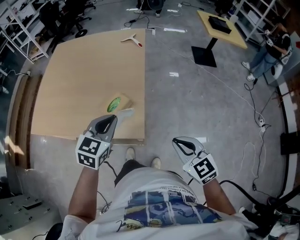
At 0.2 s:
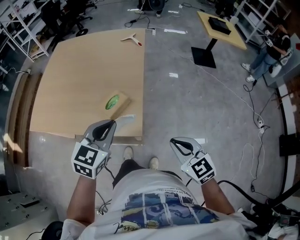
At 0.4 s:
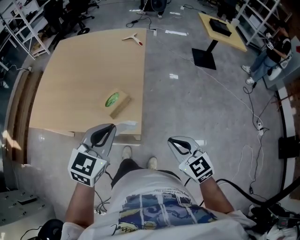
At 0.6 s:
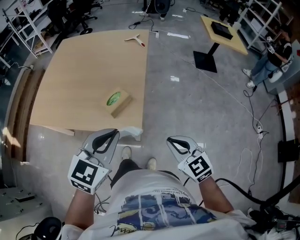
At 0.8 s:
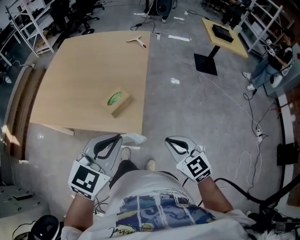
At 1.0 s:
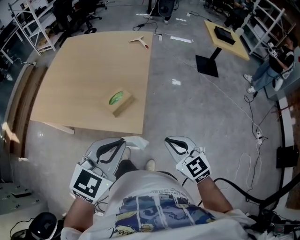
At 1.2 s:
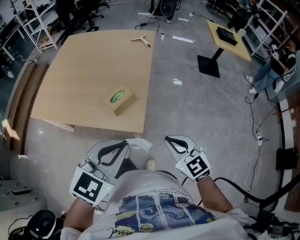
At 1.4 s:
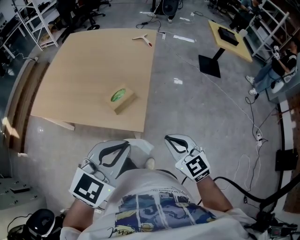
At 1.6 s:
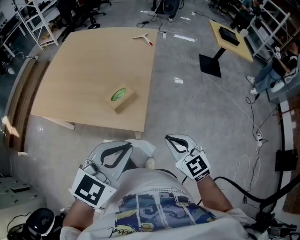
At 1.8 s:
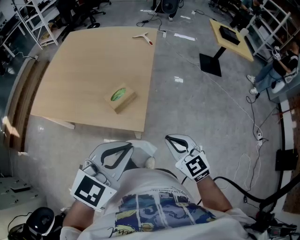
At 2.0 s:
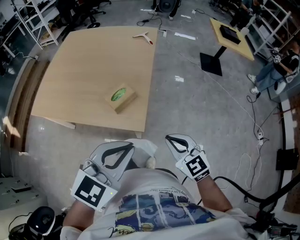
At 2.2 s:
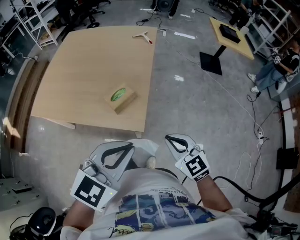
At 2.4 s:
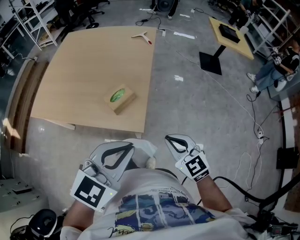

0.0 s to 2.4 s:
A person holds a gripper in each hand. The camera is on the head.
0.0 to 1.2 s: The left gripper goes some 20 cm backward and upward.
1.2 to 2.4 s: The grippers make only small movements.

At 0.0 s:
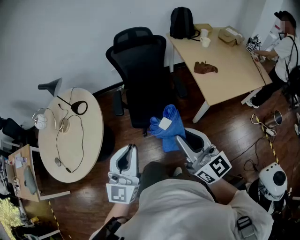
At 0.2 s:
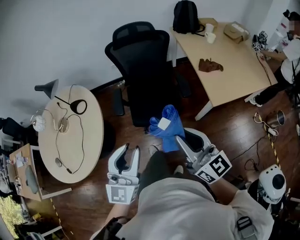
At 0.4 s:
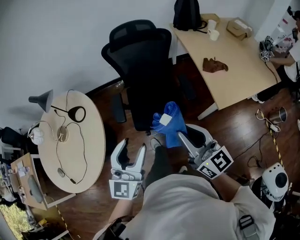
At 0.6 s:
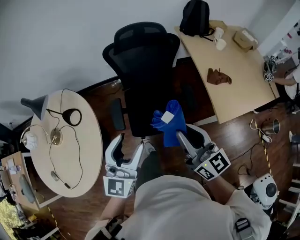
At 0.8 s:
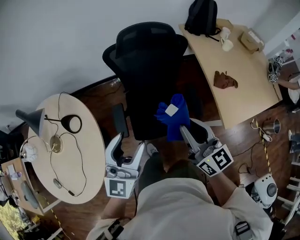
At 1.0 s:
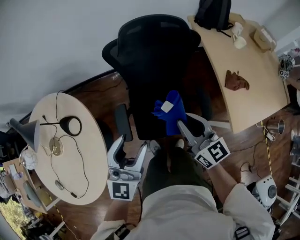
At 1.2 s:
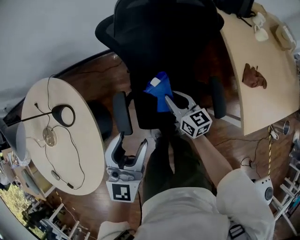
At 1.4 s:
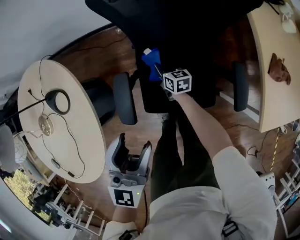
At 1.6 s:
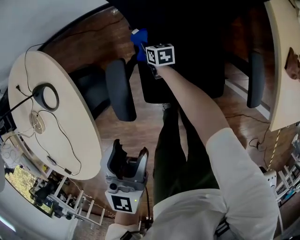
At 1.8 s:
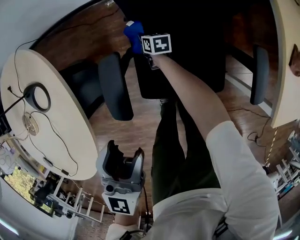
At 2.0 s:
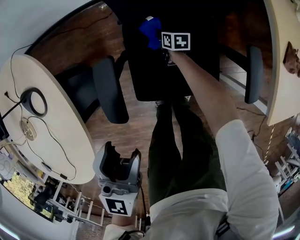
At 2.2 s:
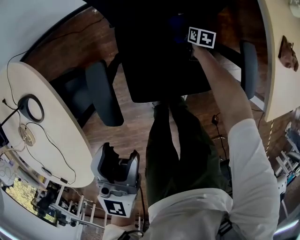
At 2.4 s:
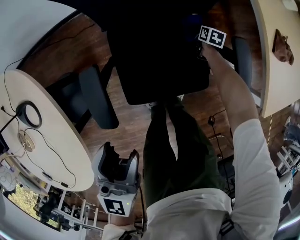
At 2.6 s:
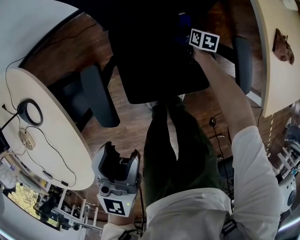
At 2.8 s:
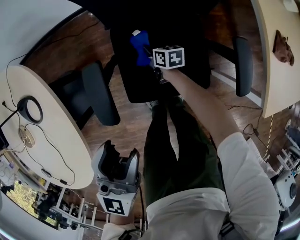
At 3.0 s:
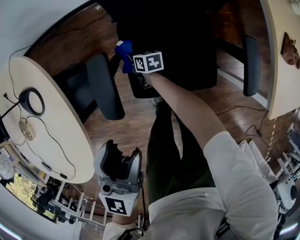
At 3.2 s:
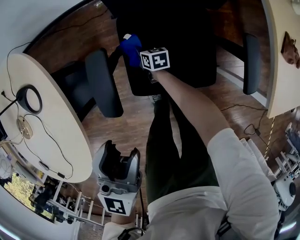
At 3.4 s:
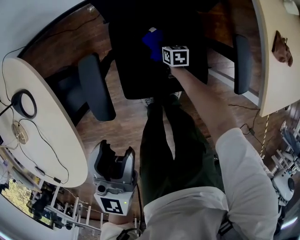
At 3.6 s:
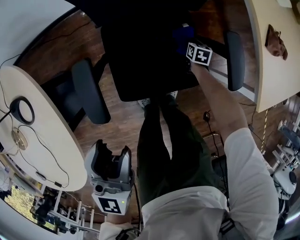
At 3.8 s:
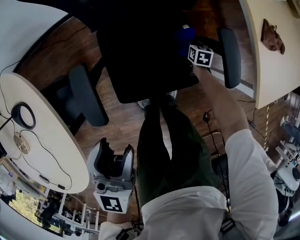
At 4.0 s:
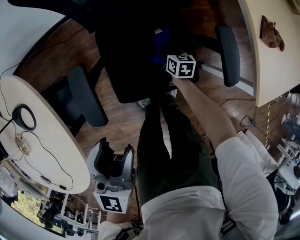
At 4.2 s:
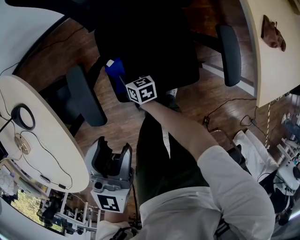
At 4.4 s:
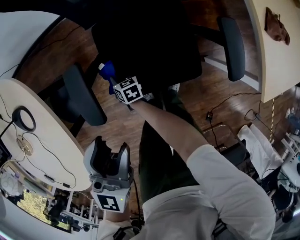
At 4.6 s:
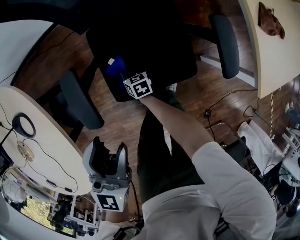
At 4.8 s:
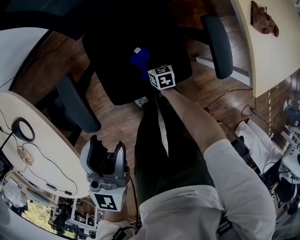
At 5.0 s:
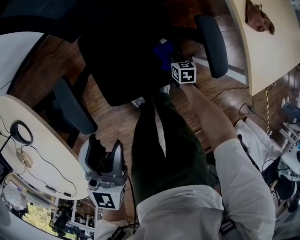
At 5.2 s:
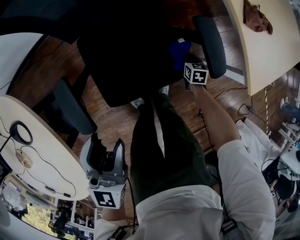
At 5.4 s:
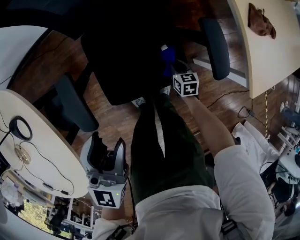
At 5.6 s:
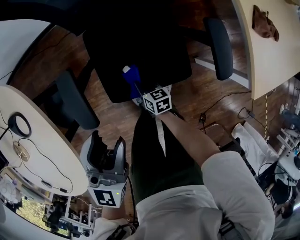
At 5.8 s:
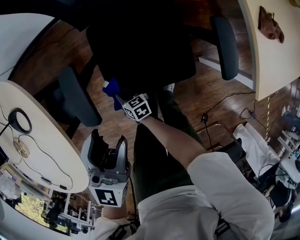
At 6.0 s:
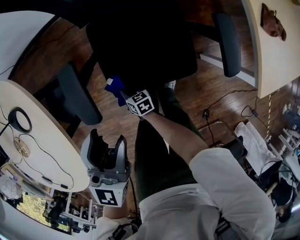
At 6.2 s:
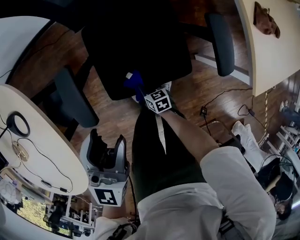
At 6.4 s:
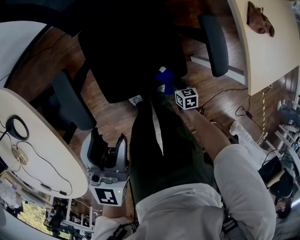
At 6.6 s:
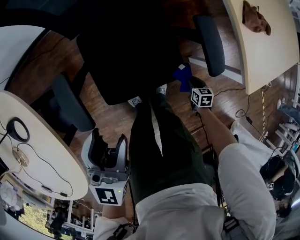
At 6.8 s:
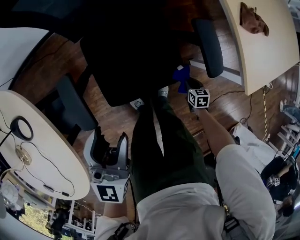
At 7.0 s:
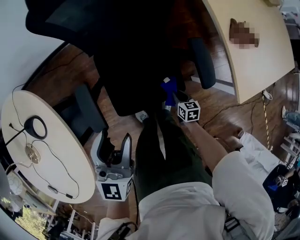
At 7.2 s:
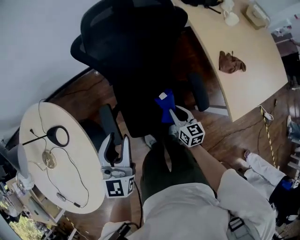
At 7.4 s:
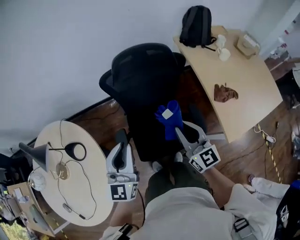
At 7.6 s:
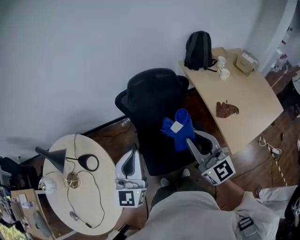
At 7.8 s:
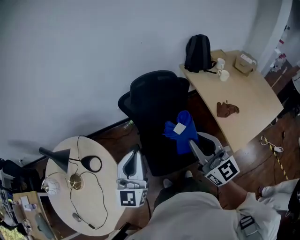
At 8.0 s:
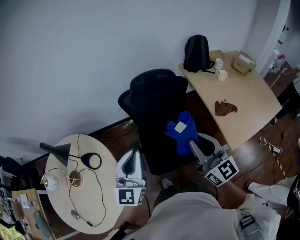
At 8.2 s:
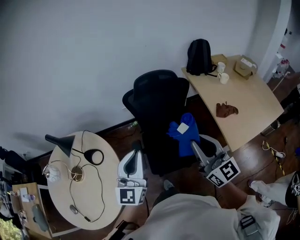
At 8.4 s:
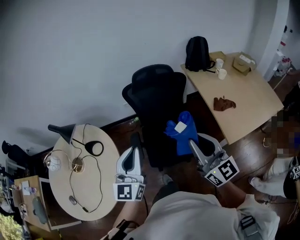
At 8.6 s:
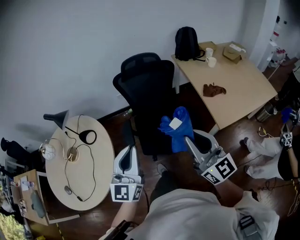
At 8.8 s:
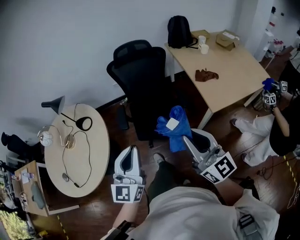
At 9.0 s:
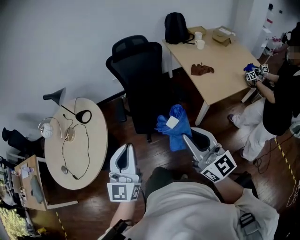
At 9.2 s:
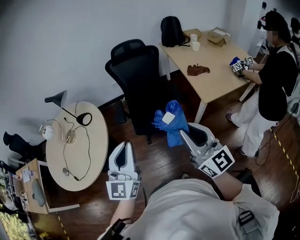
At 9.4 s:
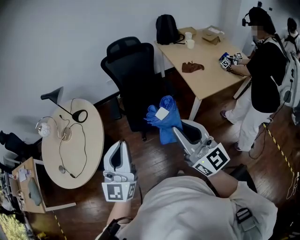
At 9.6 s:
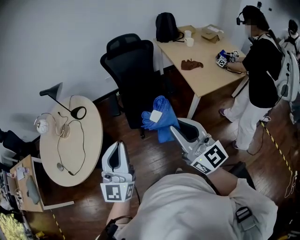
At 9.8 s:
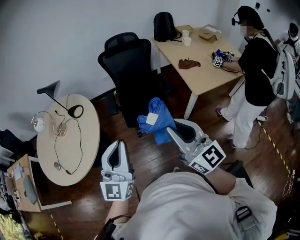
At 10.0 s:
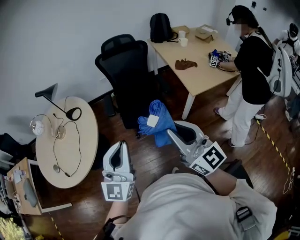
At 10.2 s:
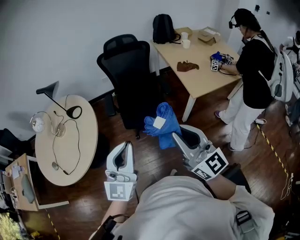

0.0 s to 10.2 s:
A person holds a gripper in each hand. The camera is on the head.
0.0 to 1.4 s: The pair of grippers is taken forward, about 70 cm. The right gripper heads downward, covering about 70 cm, and angles its fingers downward, by about 50 degrees; the left gripper moves downward, some 25 cm, rotates approximately 20 degrees, and opens up.
1.4 to 3.0 s: The right gripper goes left and right, roughly 35 cm each way, reversing 2 times. Meanwhile the left gripper moves downward, some 10 cm.
5.8 to 7.2 s: The right gripper travels upward and to the right by about 50 cm, and swivels roughly 40 degrees, while the left gripper is displaced upward by roughly 20 cm.
7.2 to 8.8 s: The pair of grippers is taken backward, some 60 cm. The left gripper closes; the right gripper heads upward, covering approximately 50 cm, and tips its fingers upward by some 50 degrees.
8.8 to 10.2 s: Both grippers travel together backward, roughly 20 cm. The left gripper turns by some 20 degrees.

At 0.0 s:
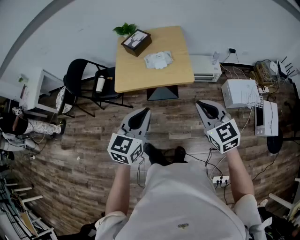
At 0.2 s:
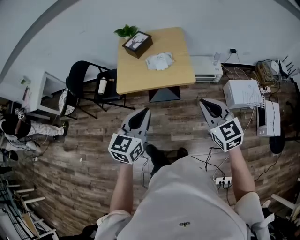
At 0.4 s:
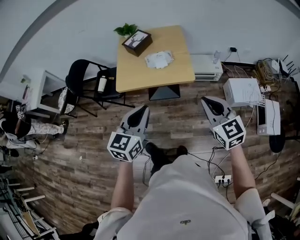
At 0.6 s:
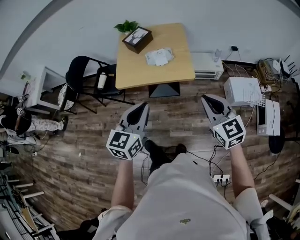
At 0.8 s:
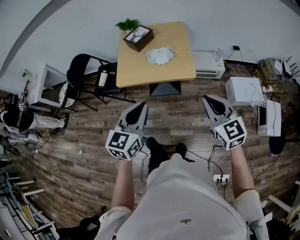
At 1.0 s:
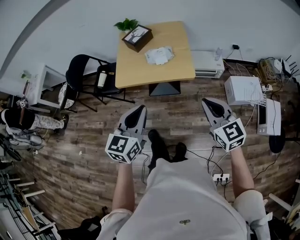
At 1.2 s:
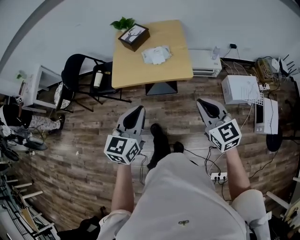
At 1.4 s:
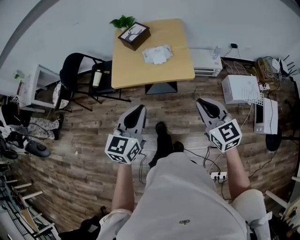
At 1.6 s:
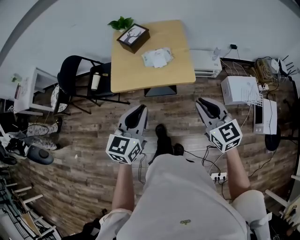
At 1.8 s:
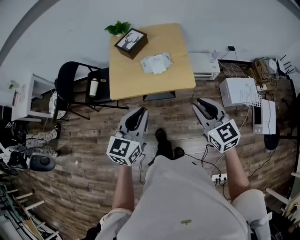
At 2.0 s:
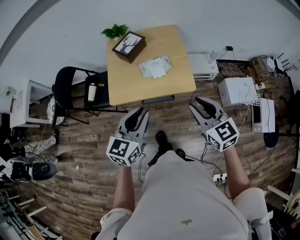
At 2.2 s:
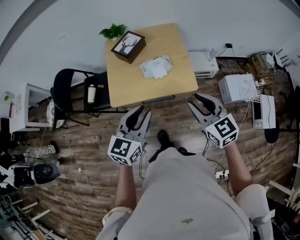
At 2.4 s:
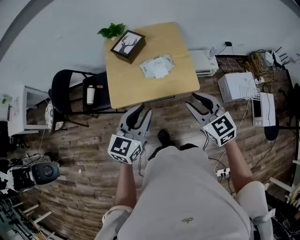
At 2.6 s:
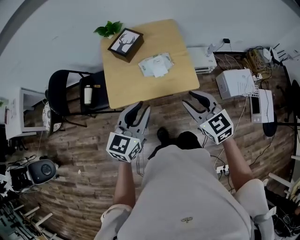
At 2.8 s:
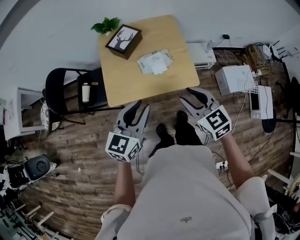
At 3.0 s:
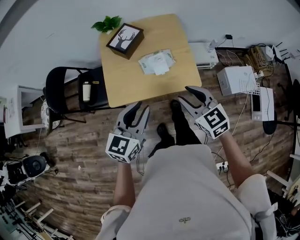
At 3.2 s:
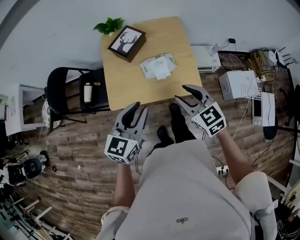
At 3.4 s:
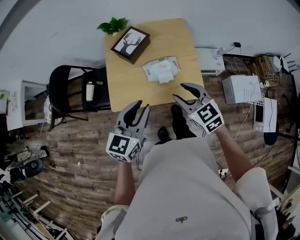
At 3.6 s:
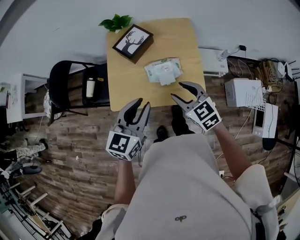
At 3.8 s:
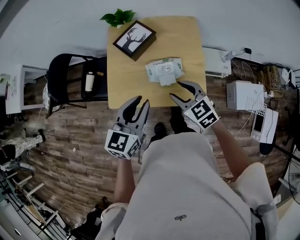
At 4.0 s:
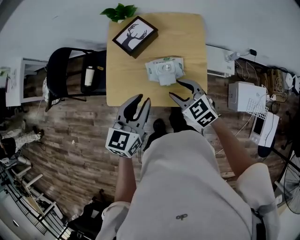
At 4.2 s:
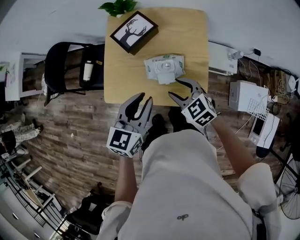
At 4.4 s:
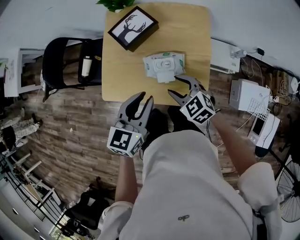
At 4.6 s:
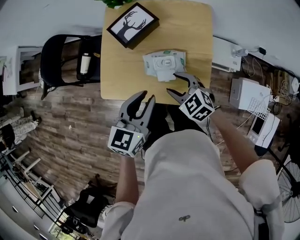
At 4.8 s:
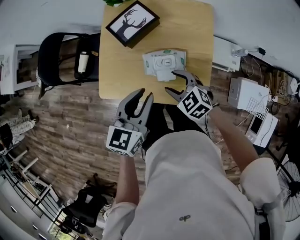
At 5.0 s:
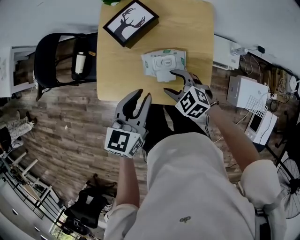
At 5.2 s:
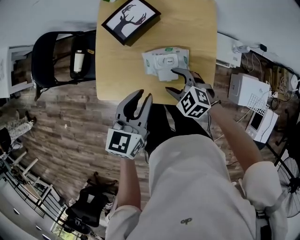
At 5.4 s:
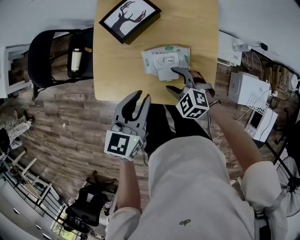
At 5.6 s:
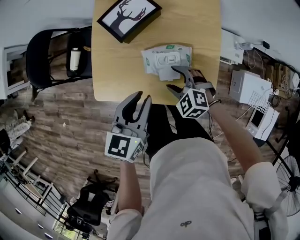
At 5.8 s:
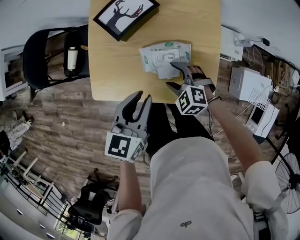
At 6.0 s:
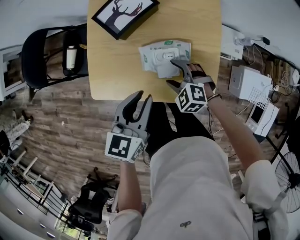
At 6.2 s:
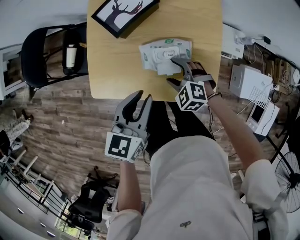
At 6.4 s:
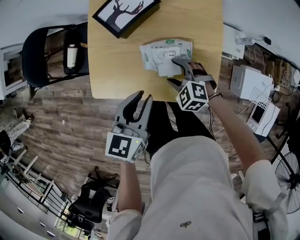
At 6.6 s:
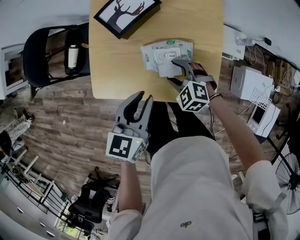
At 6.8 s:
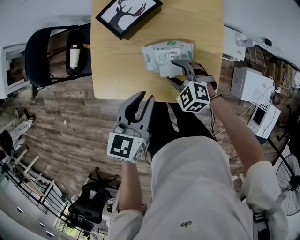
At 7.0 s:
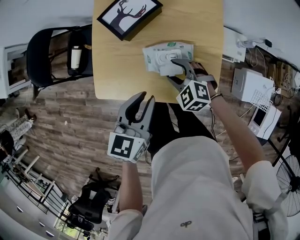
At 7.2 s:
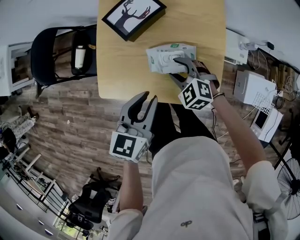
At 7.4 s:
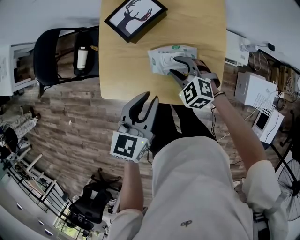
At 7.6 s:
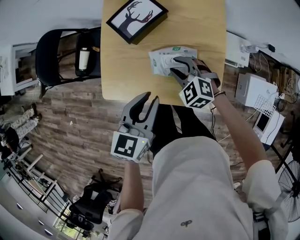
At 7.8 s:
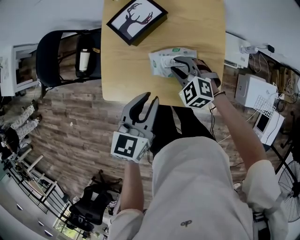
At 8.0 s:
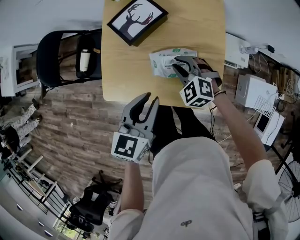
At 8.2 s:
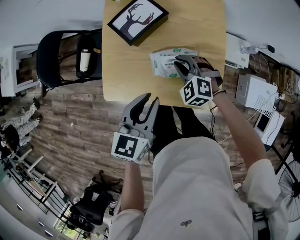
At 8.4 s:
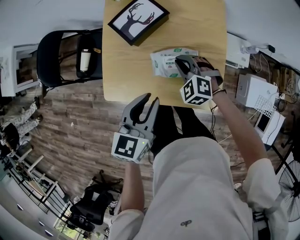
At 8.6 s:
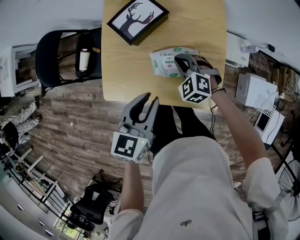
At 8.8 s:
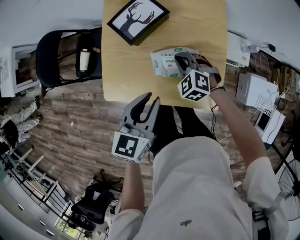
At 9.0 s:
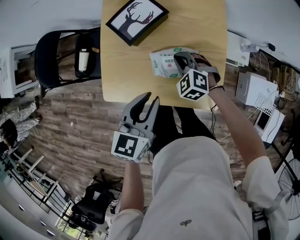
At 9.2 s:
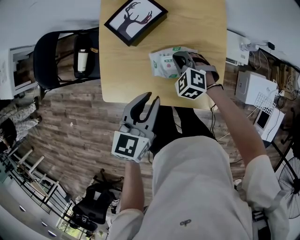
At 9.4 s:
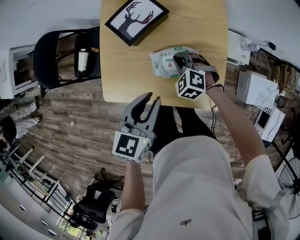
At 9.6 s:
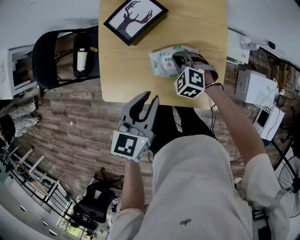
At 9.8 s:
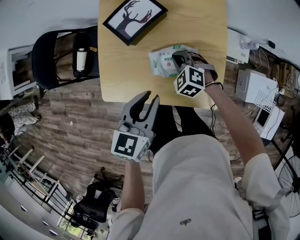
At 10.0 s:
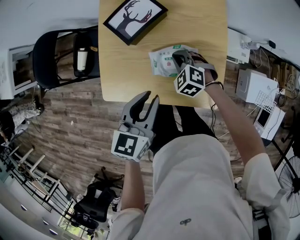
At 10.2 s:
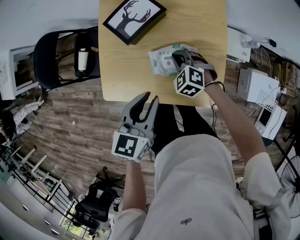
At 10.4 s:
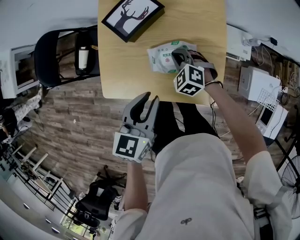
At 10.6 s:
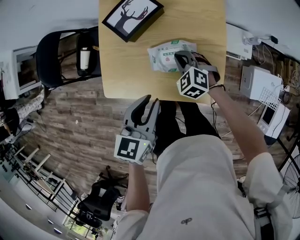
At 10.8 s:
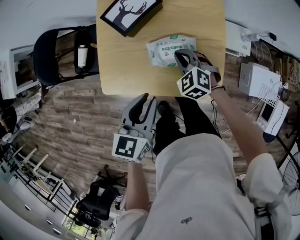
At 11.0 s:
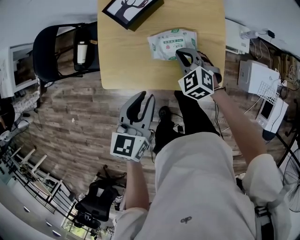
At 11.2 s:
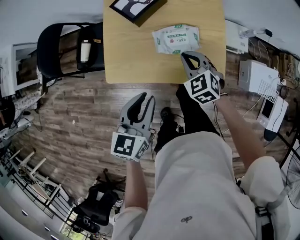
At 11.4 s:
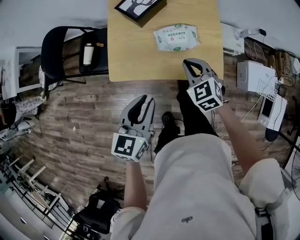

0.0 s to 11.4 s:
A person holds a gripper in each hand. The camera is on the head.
0.0 to 1.4 s: The grippers make only small movements.
1.4 to 2.8 s: The right gripper heads forward and to the left, covering about 20 cm. Meanwhile the left gripper heads forward, covering roughly 20 cm.
2.8 to 4.2 s: The left gripper goes roughly 15 cm forward and to the right. Meanwhile the right gripper shifts roughly 25 cm forward and downward, and rotates roughly 30 degrees.
4.2 to 5.6 s: The left gripper is displaced downward by approximately 10 cm. Meanwhile the right gripper is displaced downward by approximately 15 cm, and swivels some 20 degrees.
5.6 to 7.2 s: The grippers make only small movements.
7.2 to 8.6 s: The right gripper moves approximately 5 cm, and closes.
8.6 to 10.0 s: The grippers move only a little.
10.0 to 11.4 s: The left gripper moves backward and to the left, approximately 20 cm, while the right gripper moves backward and upward, roughly 20 cm, and swivels some 20 degrees.
